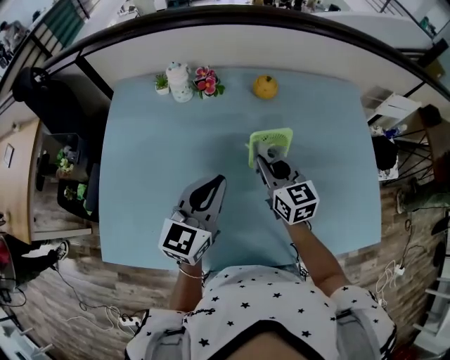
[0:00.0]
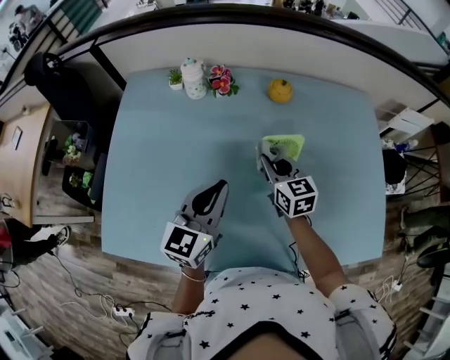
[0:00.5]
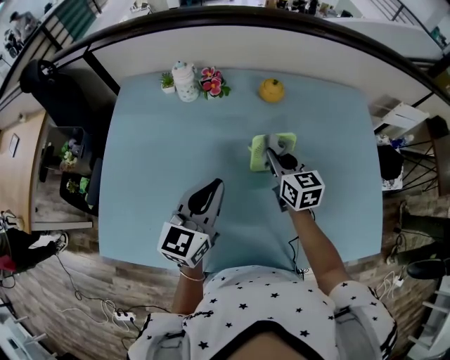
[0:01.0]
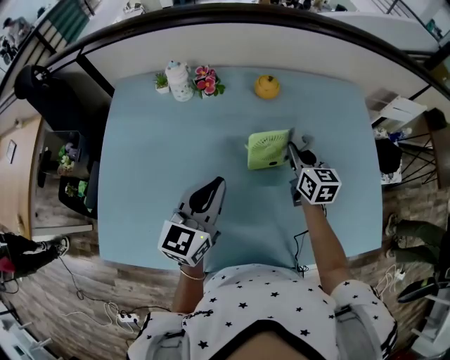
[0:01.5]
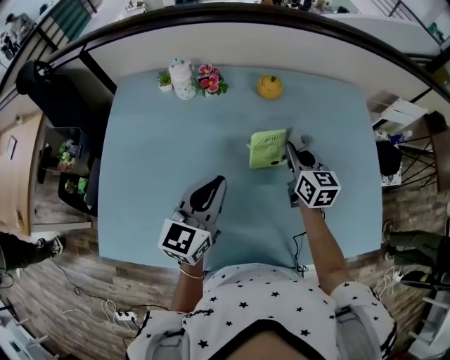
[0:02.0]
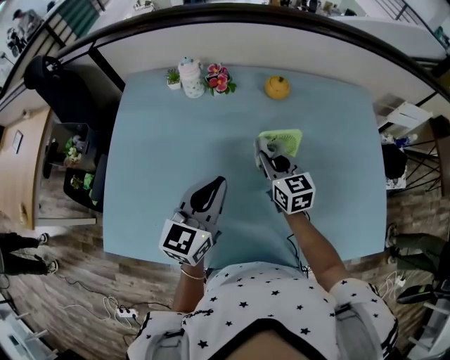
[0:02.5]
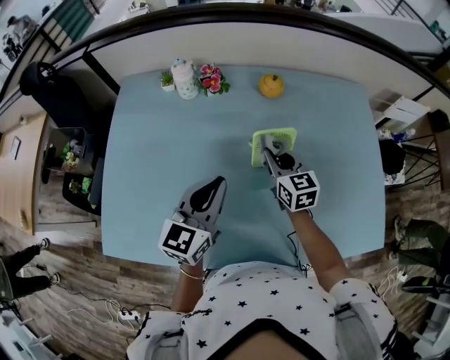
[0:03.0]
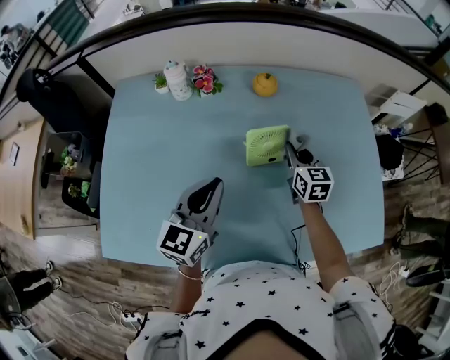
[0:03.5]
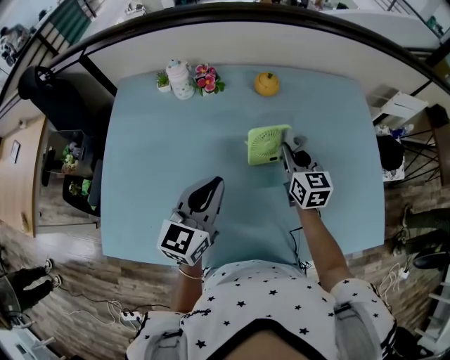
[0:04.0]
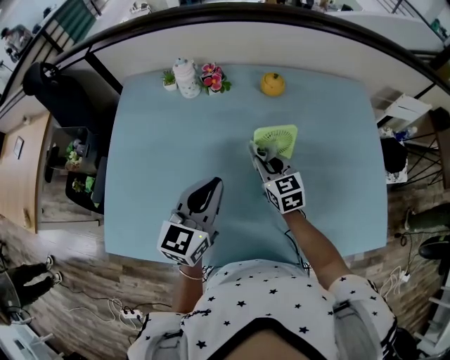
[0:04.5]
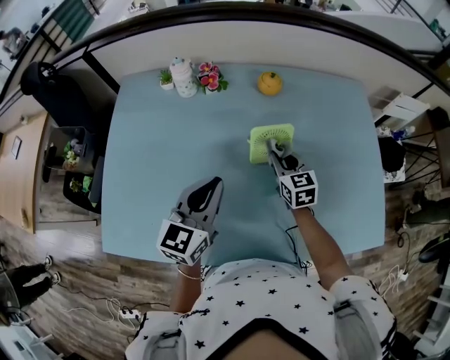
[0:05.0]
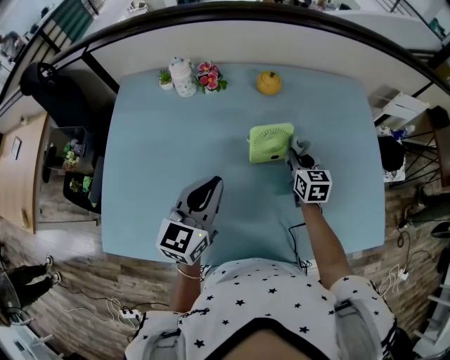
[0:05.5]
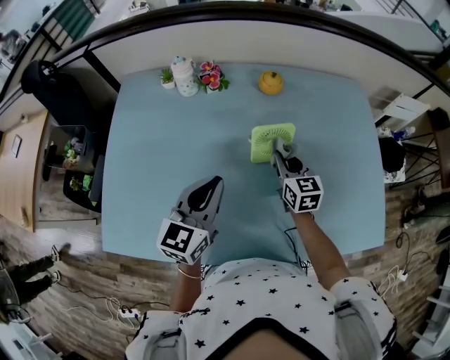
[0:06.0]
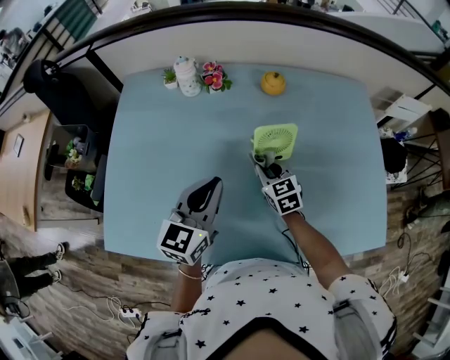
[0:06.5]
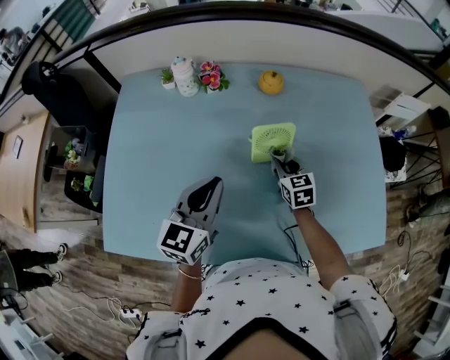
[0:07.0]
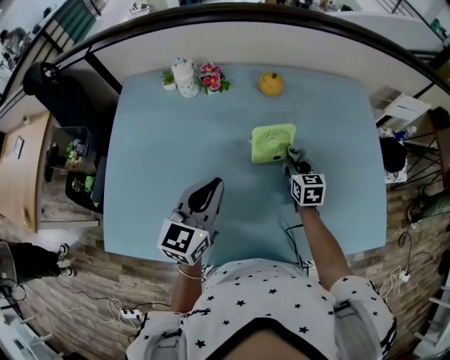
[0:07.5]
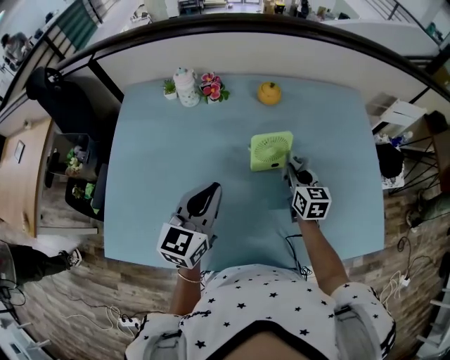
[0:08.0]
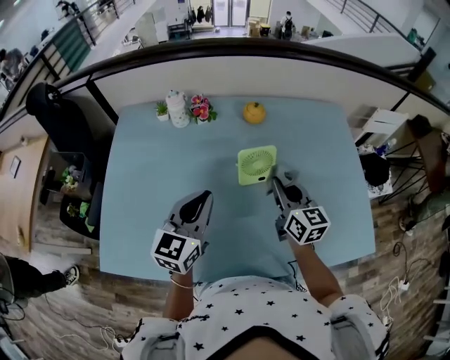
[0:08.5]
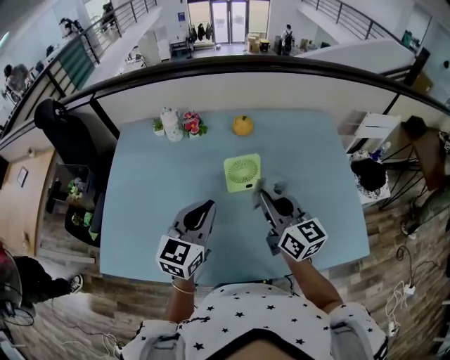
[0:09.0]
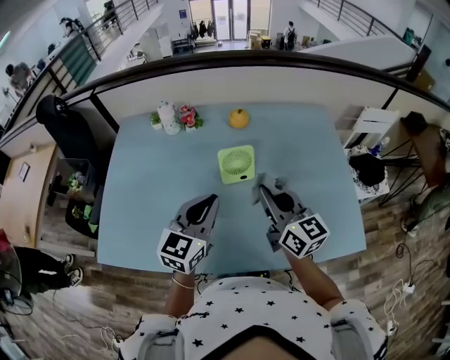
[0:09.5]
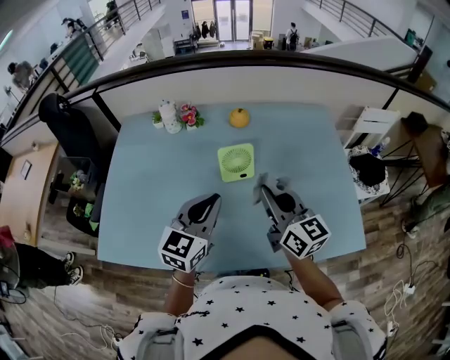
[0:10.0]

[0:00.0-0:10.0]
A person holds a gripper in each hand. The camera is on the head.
0:00.0 to 0:02.0: The right gripper shifts approximately 10 cm to the right and forward.
0:02.0 to 0:04.0: The right gripper goes to the left and returns, about 10 cm each way.
0:04.0 to 0:06.0: The right gripper goes left and right, roughly 15 cm each way, reversing 2 times.
0:06.0 to 0:08.0: The right gripper goes roughly 5 cm to the right.
0:08.0 to 0:10.0: The left gripper goes approximately 15 cm to the right, upward and backward. Meanwhile the right gripper moves upward and backward, approximately 25 cm, and rotates roughly 30 degrees.

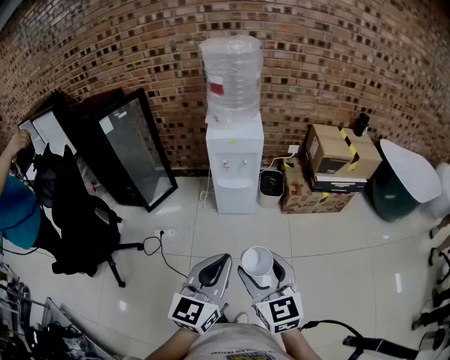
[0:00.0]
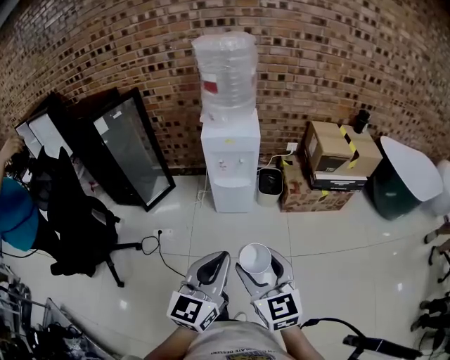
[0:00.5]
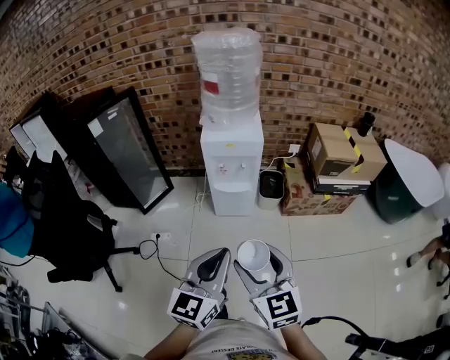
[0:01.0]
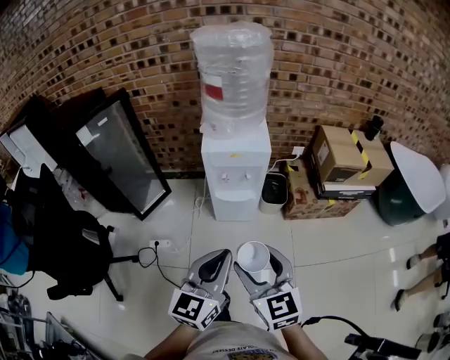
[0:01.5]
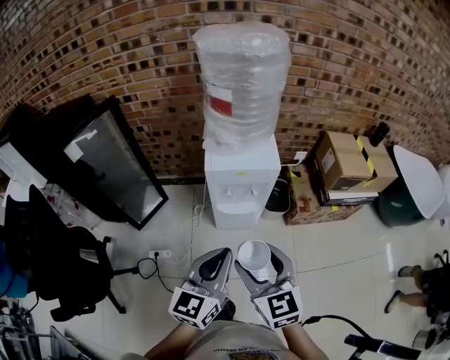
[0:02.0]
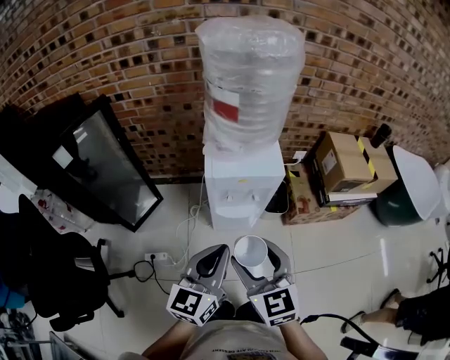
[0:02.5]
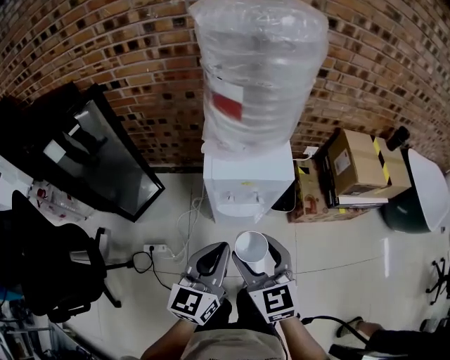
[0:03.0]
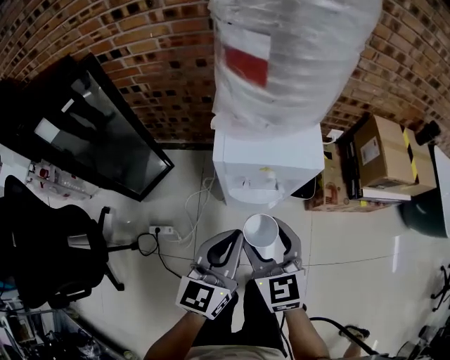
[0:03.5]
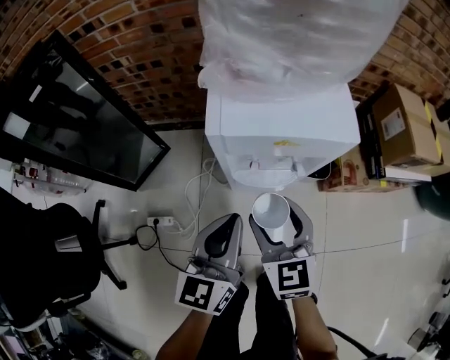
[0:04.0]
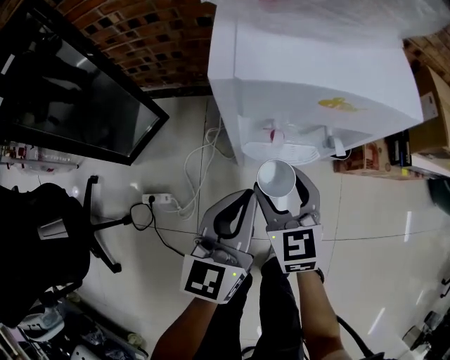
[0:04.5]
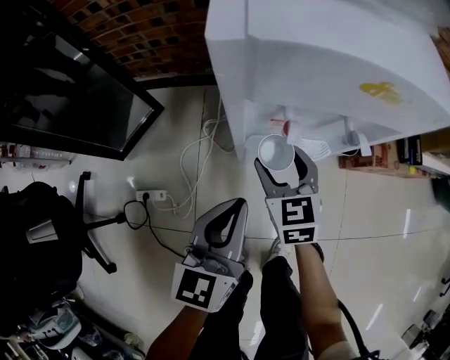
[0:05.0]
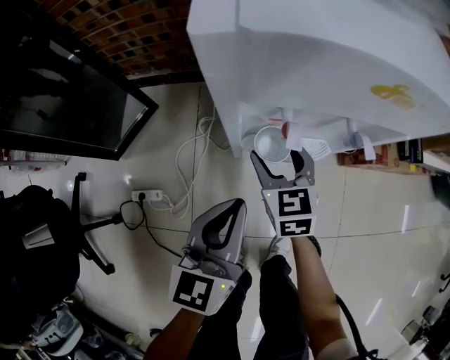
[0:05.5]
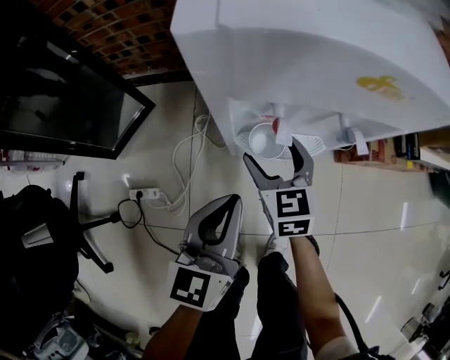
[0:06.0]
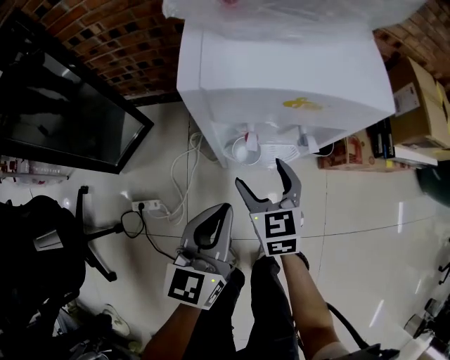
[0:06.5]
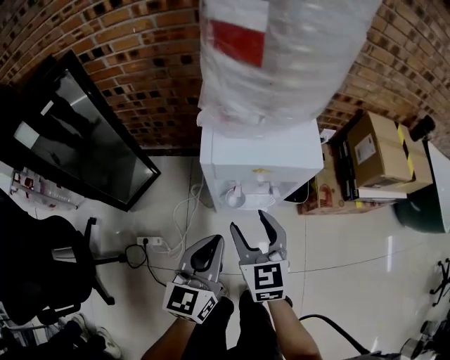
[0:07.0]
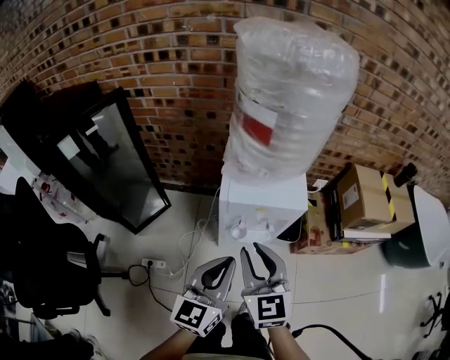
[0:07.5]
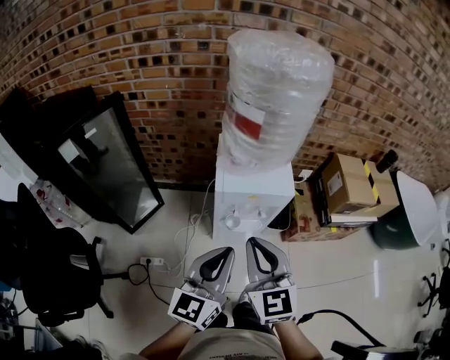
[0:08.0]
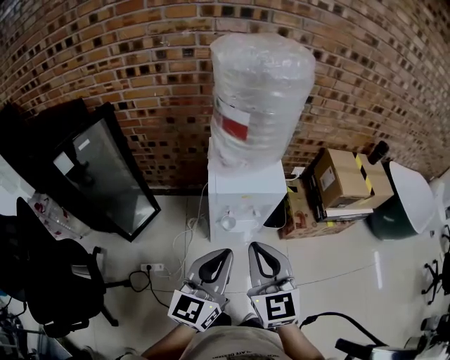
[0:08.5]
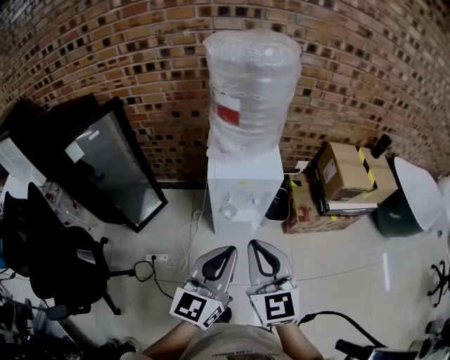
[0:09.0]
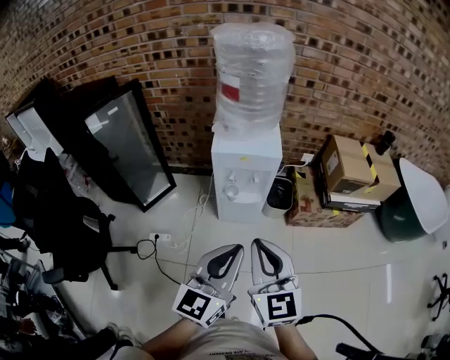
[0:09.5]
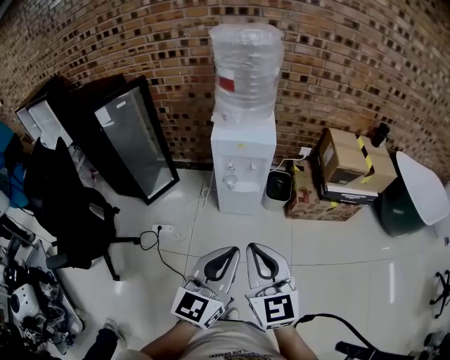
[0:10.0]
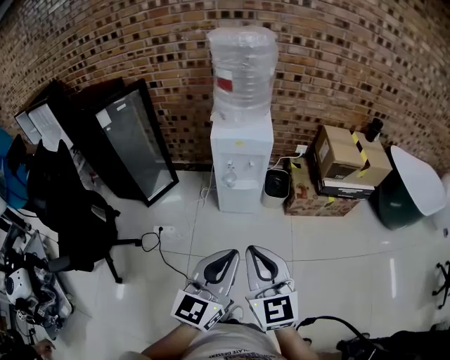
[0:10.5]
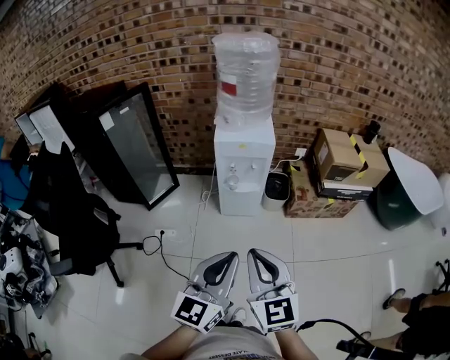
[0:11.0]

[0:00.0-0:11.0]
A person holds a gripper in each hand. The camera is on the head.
0:00.0 to 0:02.0: The two grippers go approximately 30 cm forward.
0:02.0 to 0:03.5: The grippers both shift forward and downward by some 20 cm.
0:03.5 to 0:05.5: The left gripper is displaced downward by roughly 25 cm. Meanwhile the right gripper moves downward and forward, roughly 35 cm.
0:05.5 to 0:07.5: Both grippers travel together upward, roughly 35 cm. The right gripper turns by approximately 20 degrees, and closes its fingers.
0:07.5 to 0:09.0: The two grippers go approximately 15 cm backward and upward.
0:09.0 to 0:11.0: The grippers both shift backward by roughly 25 cm.

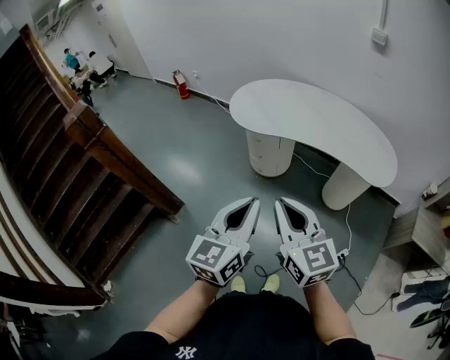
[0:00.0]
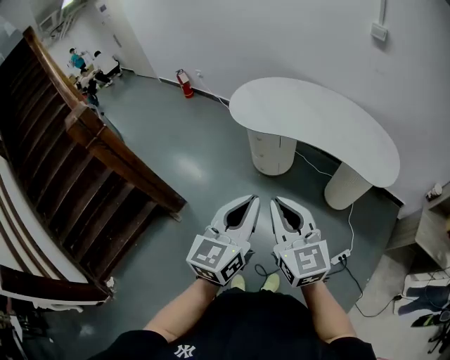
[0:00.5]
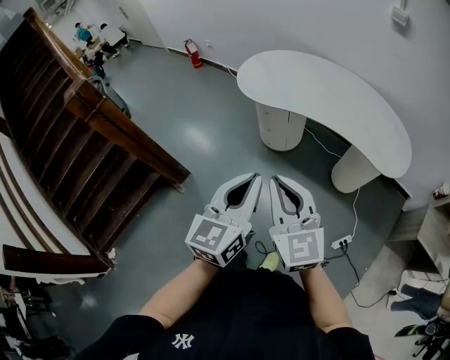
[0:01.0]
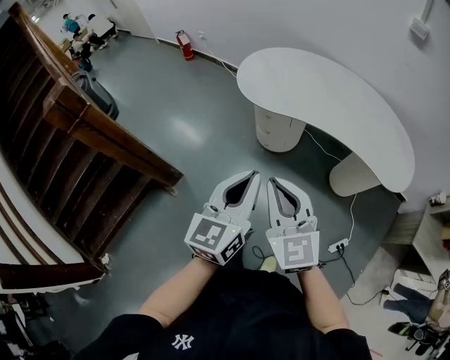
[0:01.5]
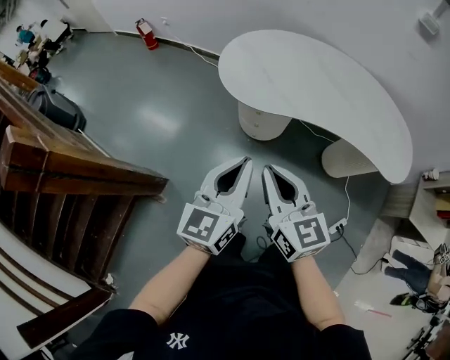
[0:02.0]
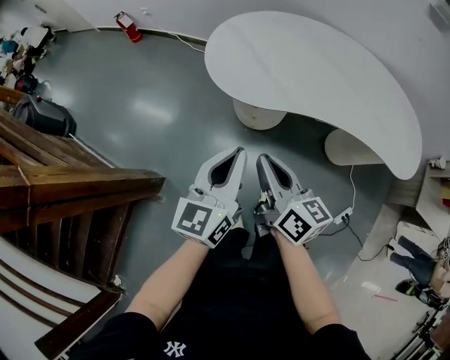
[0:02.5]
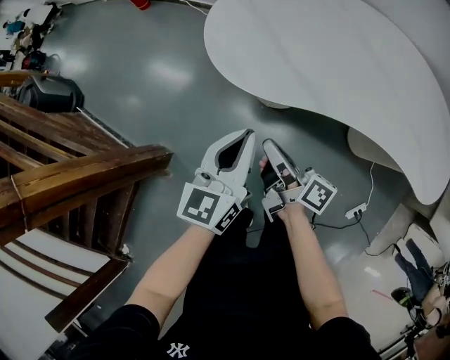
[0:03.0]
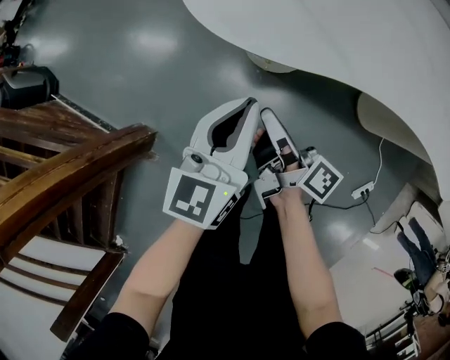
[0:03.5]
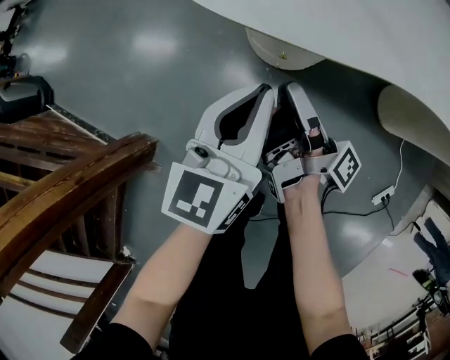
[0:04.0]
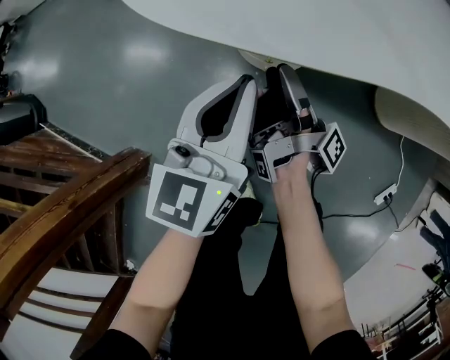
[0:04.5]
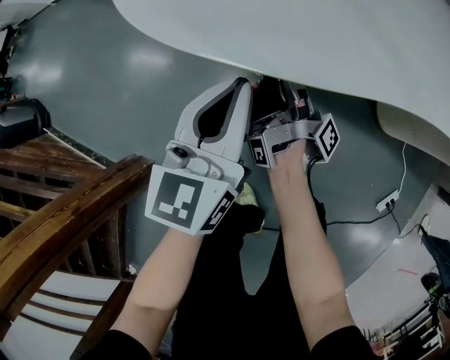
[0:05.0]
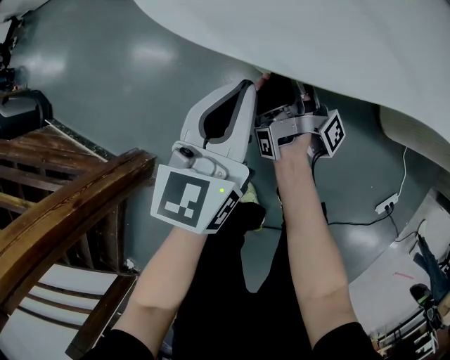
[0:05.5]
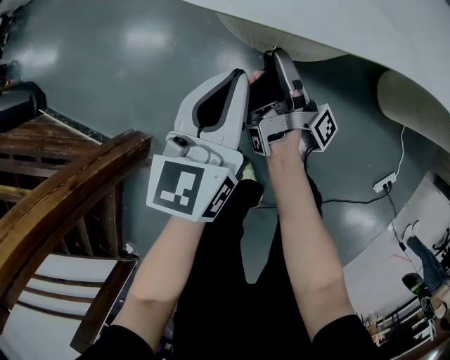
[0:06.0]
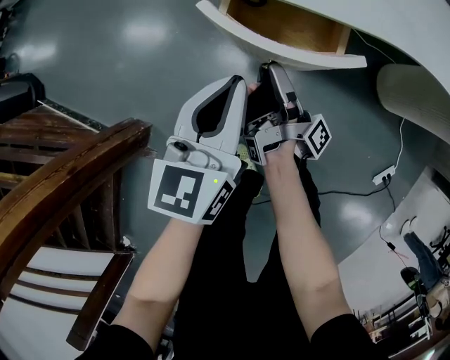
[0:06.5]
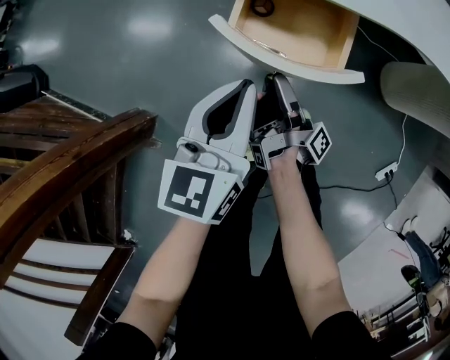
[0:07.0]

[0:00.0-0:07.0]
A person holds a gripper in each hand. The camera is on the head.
0:00.0 to 0:02.0: The left gripper ends up about 35 cm from where it was.
0:02.0 to 0:03.5: The left gripper heads downward, covering approximately 30 cm.
0:03.5 to 0:05.0: The left gripper moves downward, approximately 15 cm.
0:05.0 to 0:07.0: The left gripper shifts by some 15 cm.
